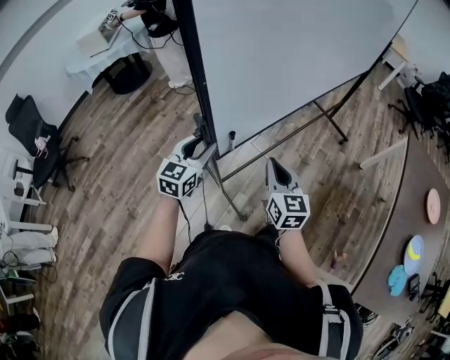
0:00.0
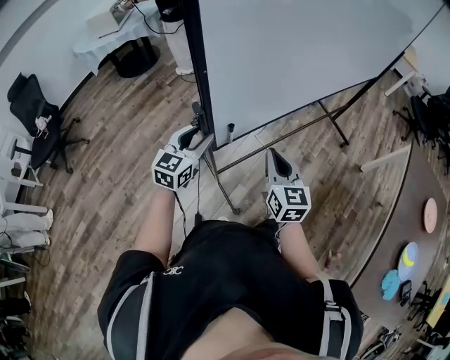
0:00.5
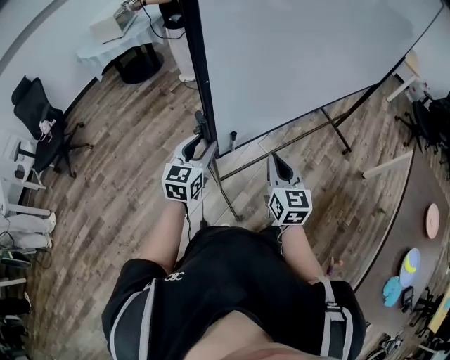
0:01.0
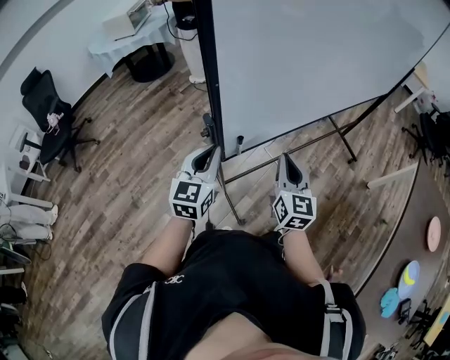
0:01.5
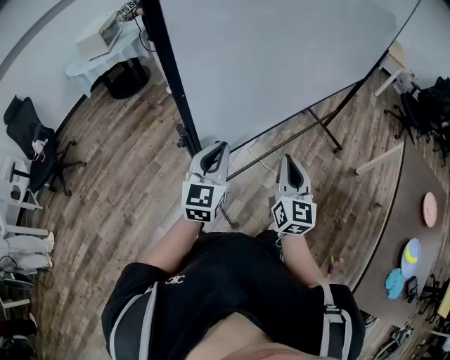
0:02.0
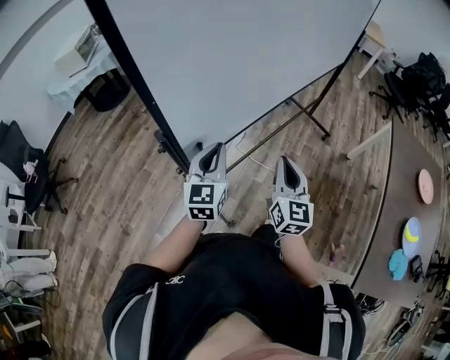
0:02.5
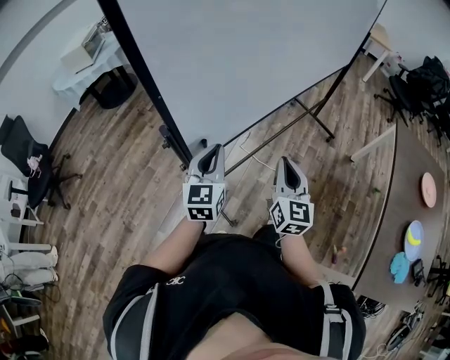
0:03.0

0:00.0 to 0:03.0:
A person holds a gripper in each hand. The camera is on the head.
0:00.0 to 0:01.5: The left gripper moves approximately 5 cm, and closes up.
0:01.5 to 0:03.0: The two grippers go approximately 10 cm to the right.

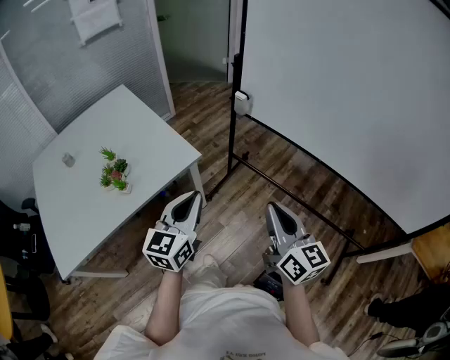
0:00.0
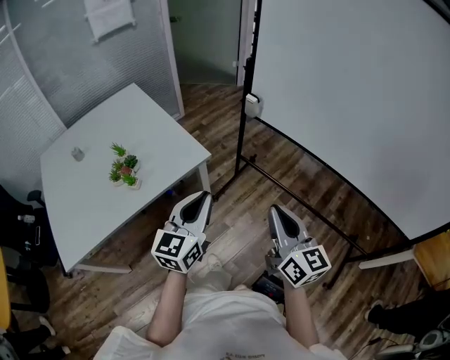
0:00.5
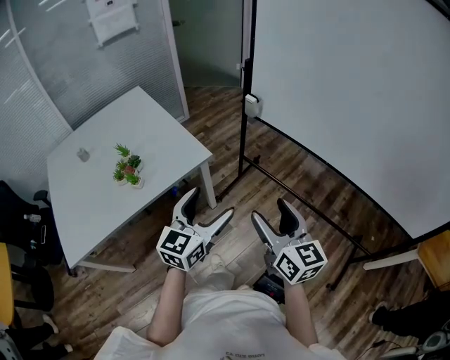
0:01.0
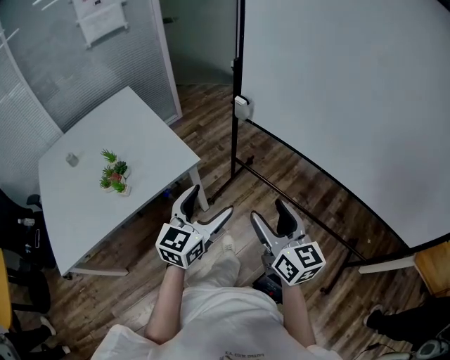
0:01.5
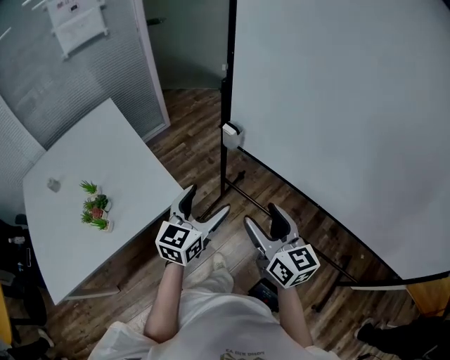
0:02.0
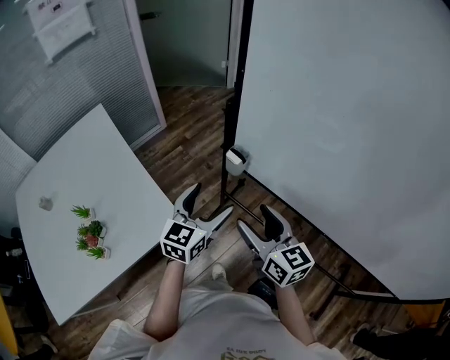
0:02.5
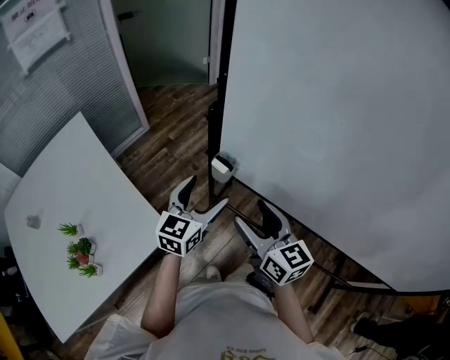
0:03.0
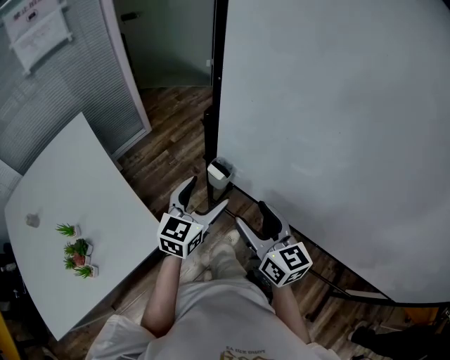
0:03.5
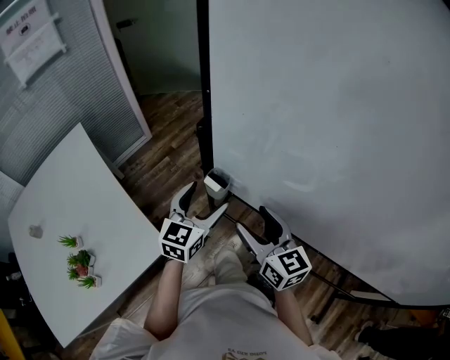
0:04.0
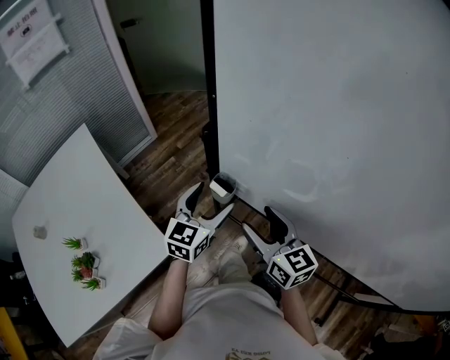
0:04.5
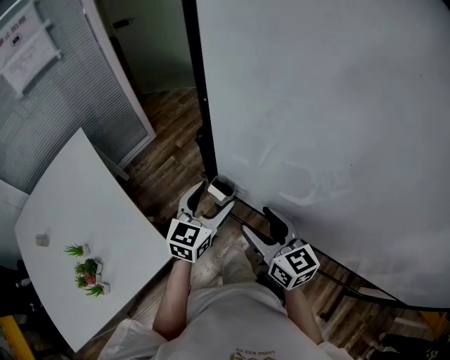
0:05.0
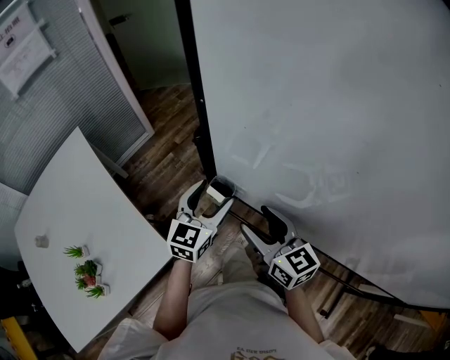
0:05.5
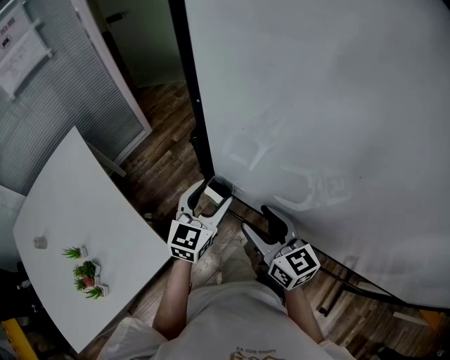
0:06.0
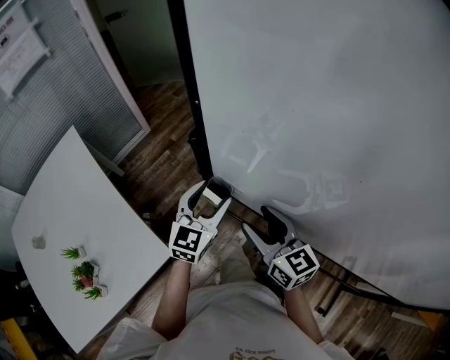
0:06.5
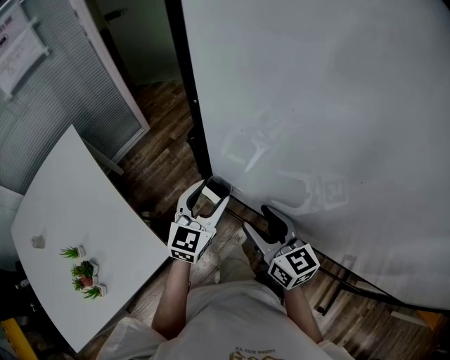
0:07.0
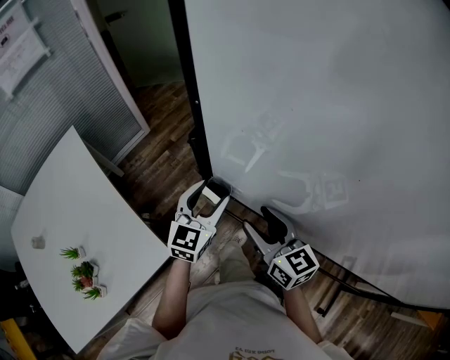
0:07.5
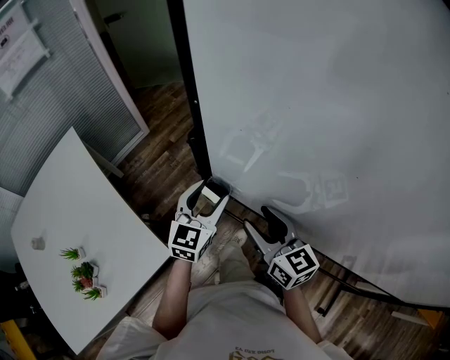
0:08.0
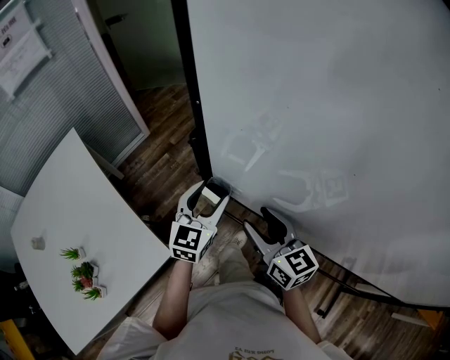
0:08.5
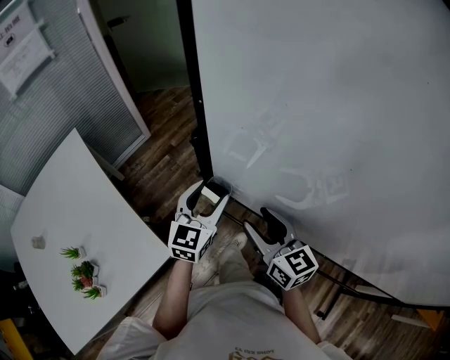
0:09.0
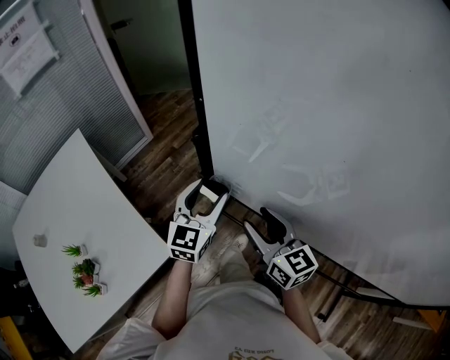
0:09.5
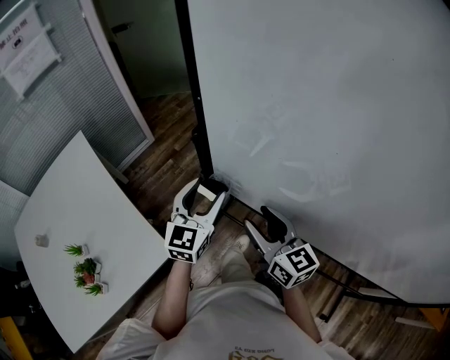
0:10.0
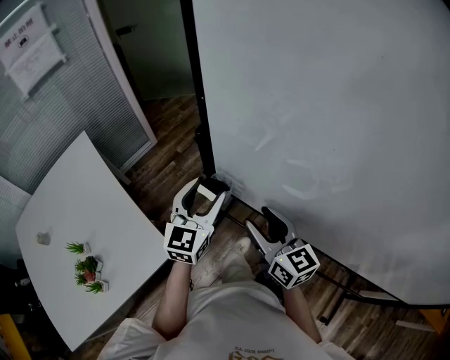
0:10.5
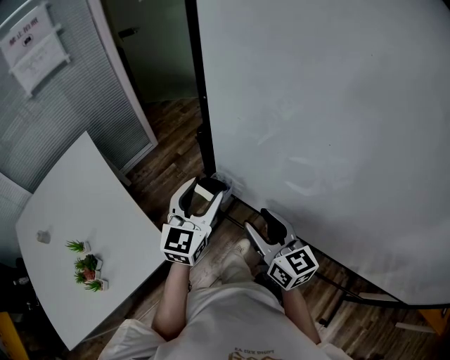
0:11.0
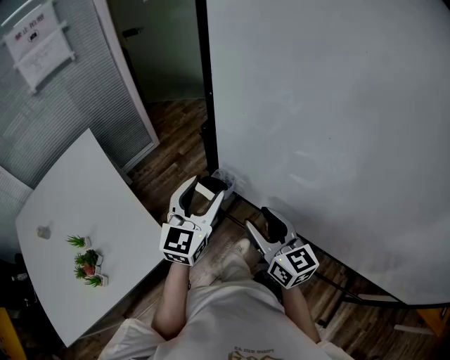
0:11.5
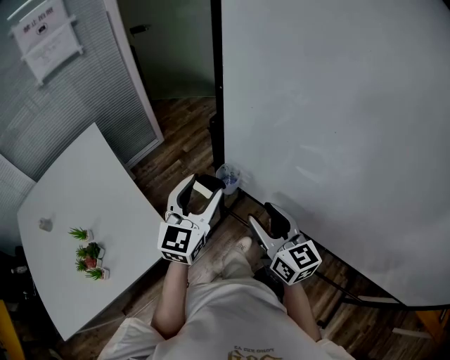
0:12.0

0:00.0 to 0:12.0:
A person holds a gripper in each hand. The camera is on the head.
0:00.0 to 0:02.0: The right gripper moves forward, roughly 20 cm, and opens up, while the left gripper moves forward and to the right, about 25 cm, and opens.
0:02.0 to 0:04.0: The grippers both shift forward by some 25 cm.
0:04.0 to 0:06.0: The left gripper changes place by roughly 5 cm.
0:06.0 to 0:08.0: Both grippers stay about where they are.
0:08.0 to 0:10.0: The left gripper ends up approximately 5 cm from where it was.
0:10.0 to 0:12.0: The left gripper goes about 5 cm backward.

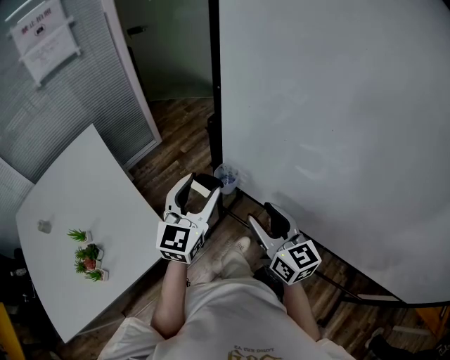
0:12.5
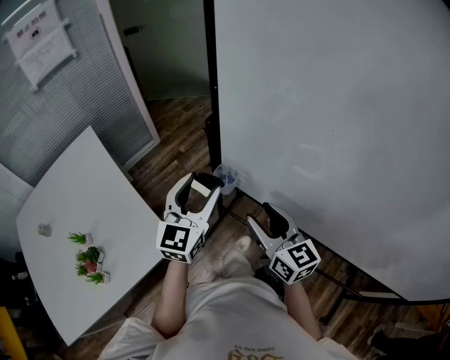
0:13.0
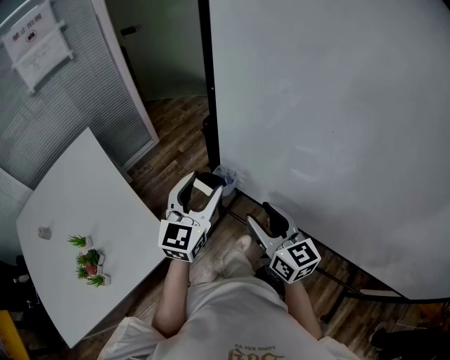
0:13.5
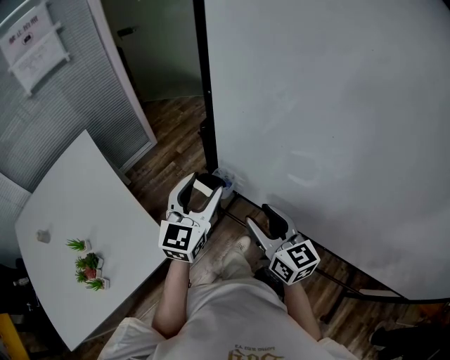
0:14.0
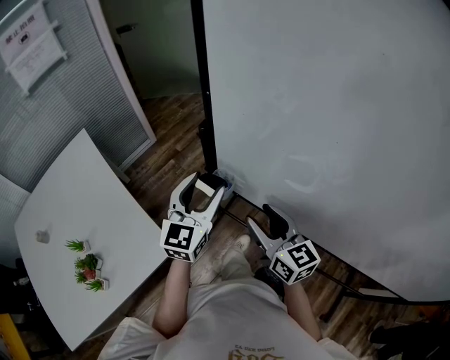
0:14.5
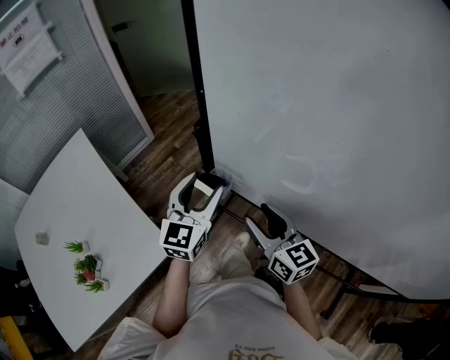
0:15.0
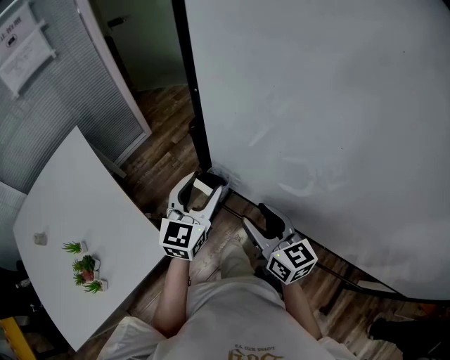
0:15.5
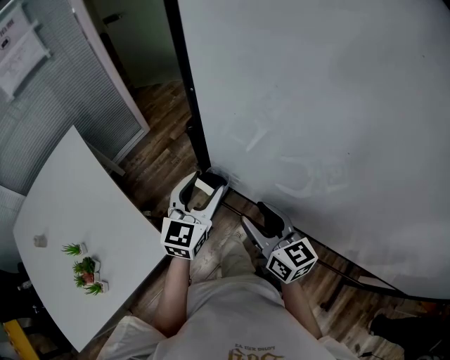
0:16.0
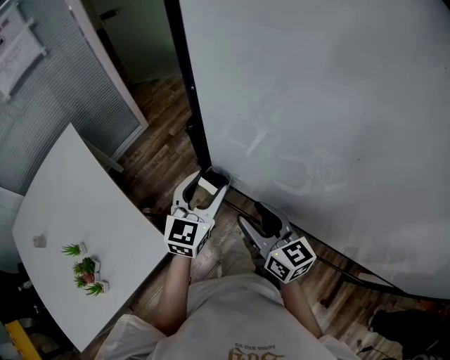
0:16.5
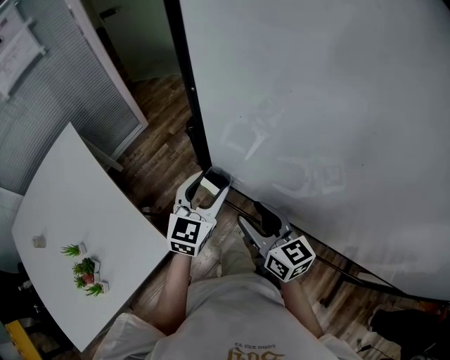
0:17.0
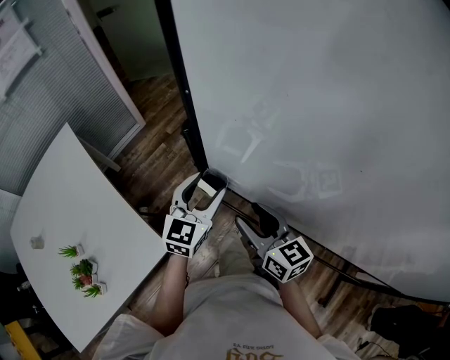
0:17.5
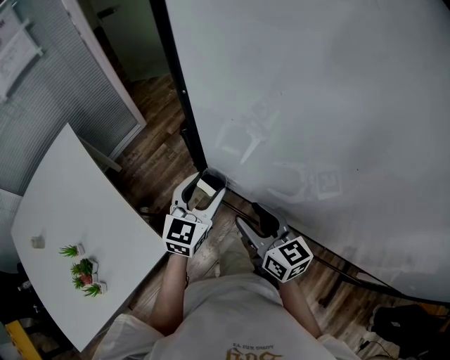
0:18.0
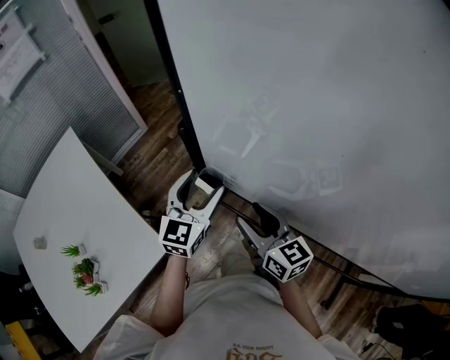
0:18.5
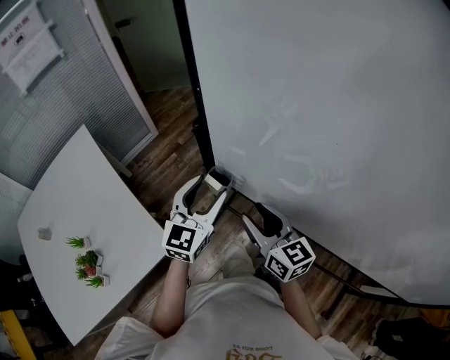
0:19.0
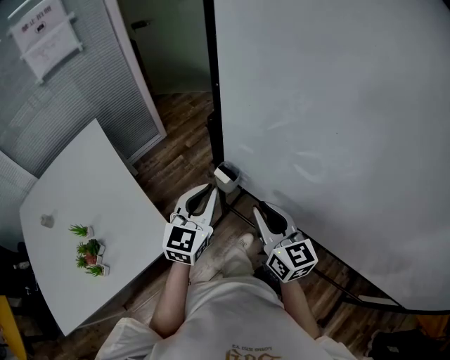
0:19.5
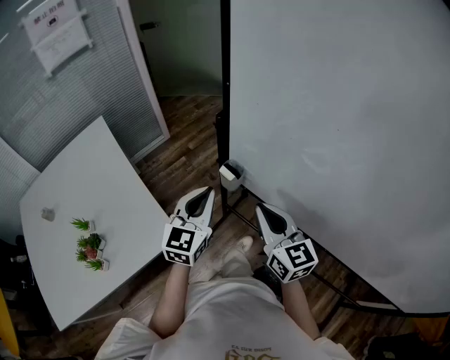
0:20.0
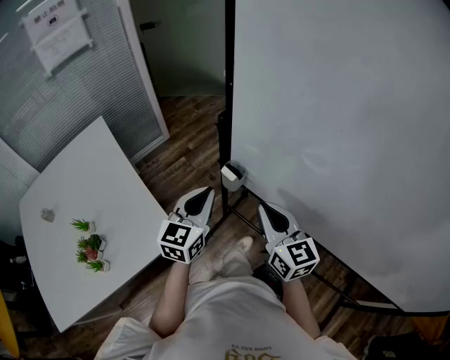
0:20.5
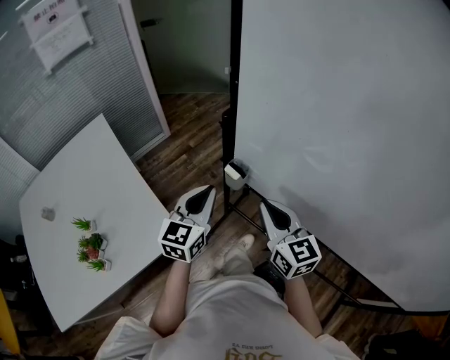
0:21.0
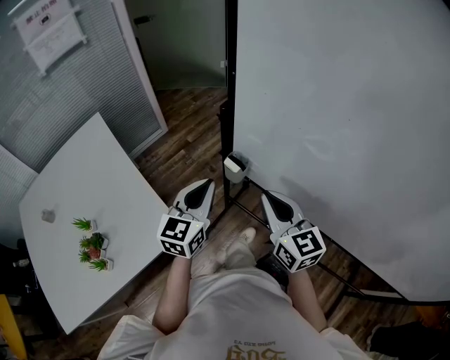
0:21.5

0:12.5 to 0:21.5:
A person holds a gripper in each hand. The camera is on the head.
0:12.5 to 0:14.5: The grippers stay close to where they were, moving slightly.
0:14.5 to 0:17.0: The left gripper heads downward, covering some 5 cm.
0:17.0 to 0:19.5: The right gripper shifts roughly 5 cm upward, and closes up, while the left gripper moves backward and upward, roughly 10 cm, and closes.
0:19.5 to 0:21.5: There are only small adjustments of the grippers.

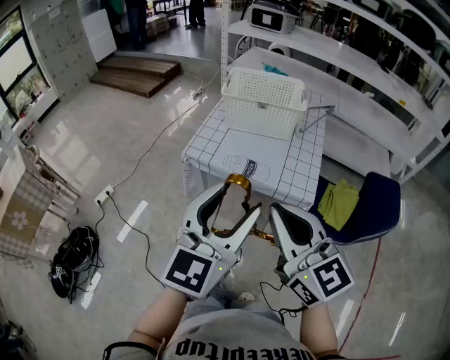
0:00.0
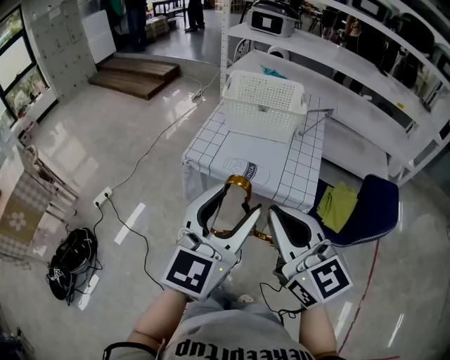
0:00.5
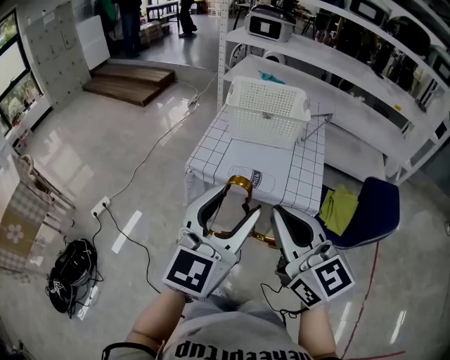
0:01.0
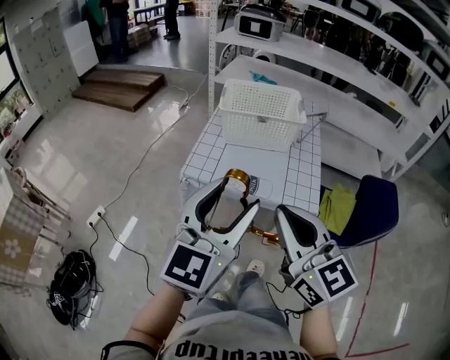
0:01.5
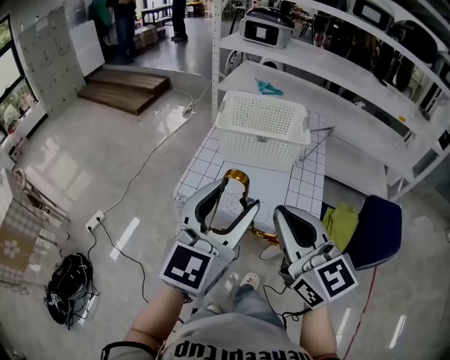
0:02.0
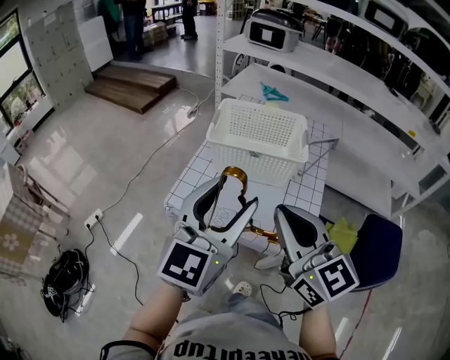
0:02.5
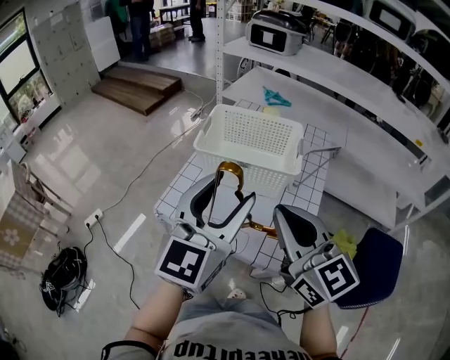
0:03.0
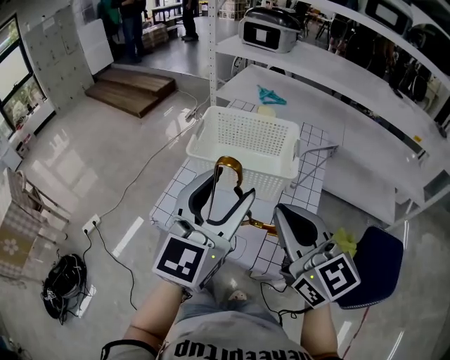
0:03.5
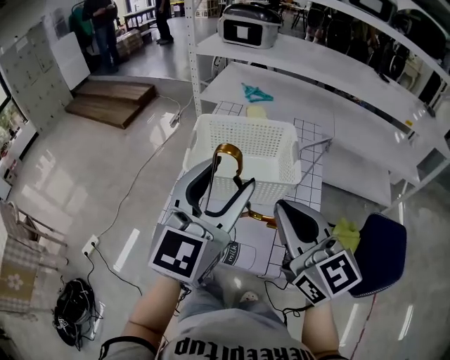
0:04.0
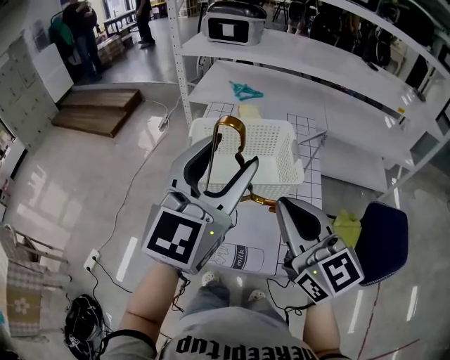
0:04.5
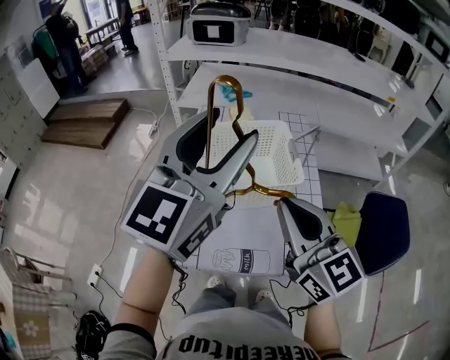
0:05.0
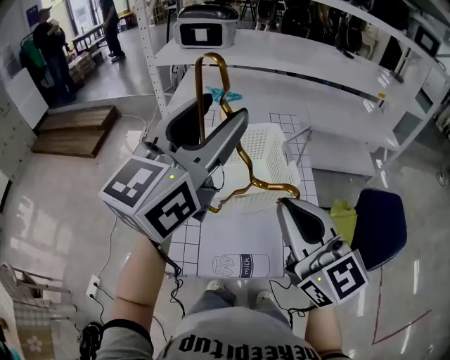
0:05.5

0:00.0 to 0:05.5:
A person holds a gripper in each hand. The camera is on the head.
0:00.0 to 0:02.0: Both grippers travel together forward, approximately 15 cm.
0:02.0 to 0:03.5: The two grippers go roughly 20 cm forward and to the right.
0:03.5 to 0:05.5: The left gripper shifts roughly 20 cm forward, upward and to the left, and changes its angle by roughly 30 degrees; the right gripper goes approximately 10 cm to the left and forward, and changes its angle by some 20 degrees.
